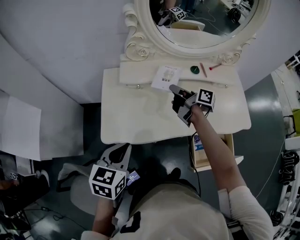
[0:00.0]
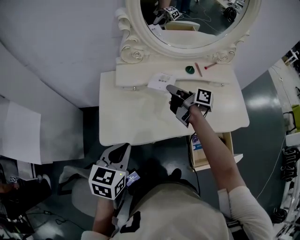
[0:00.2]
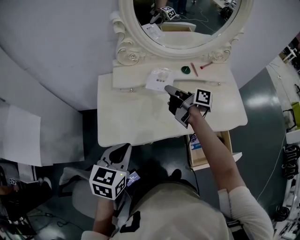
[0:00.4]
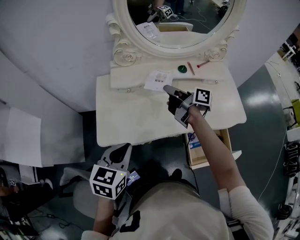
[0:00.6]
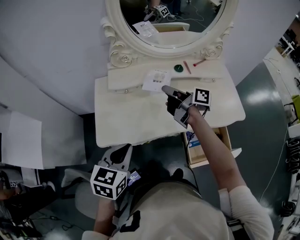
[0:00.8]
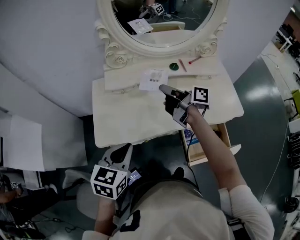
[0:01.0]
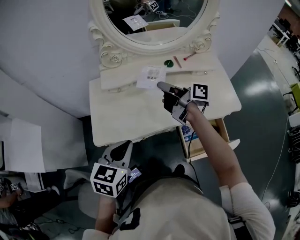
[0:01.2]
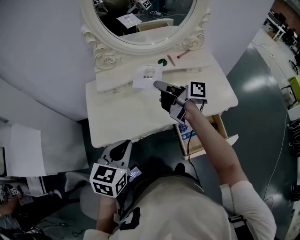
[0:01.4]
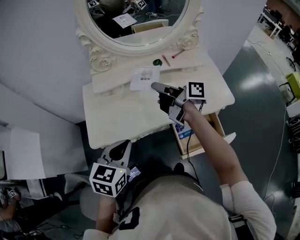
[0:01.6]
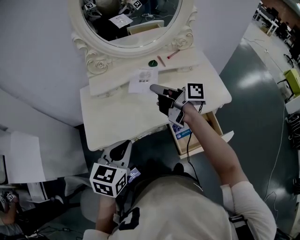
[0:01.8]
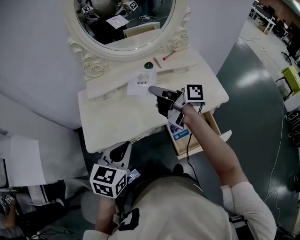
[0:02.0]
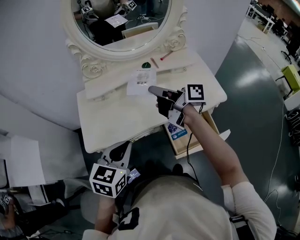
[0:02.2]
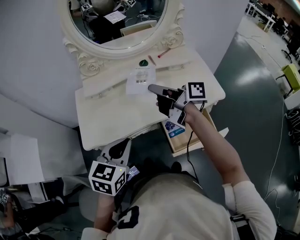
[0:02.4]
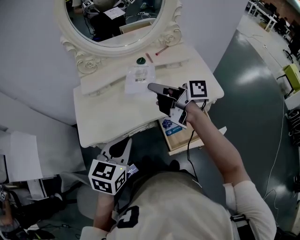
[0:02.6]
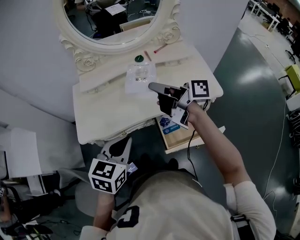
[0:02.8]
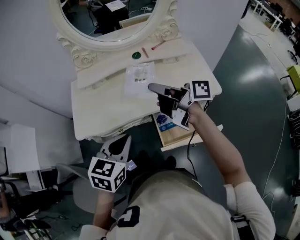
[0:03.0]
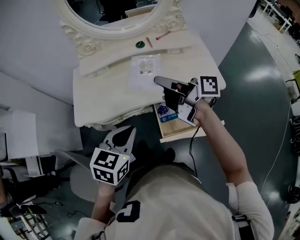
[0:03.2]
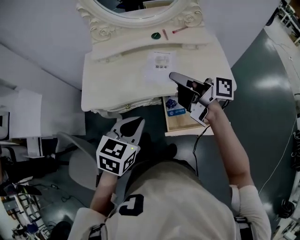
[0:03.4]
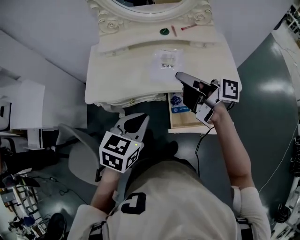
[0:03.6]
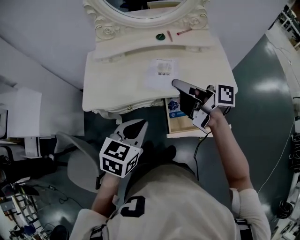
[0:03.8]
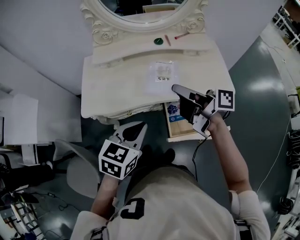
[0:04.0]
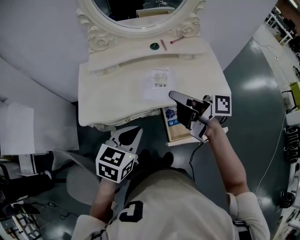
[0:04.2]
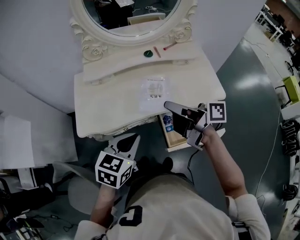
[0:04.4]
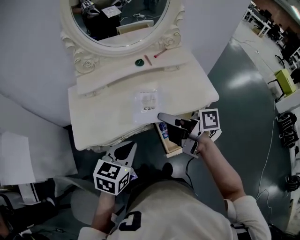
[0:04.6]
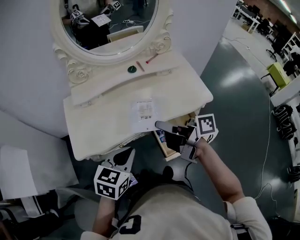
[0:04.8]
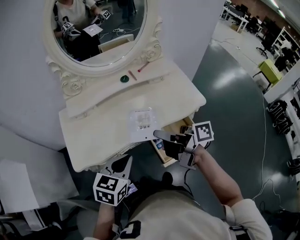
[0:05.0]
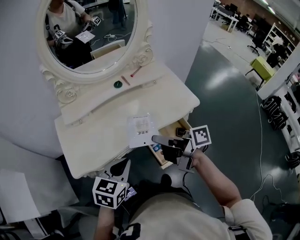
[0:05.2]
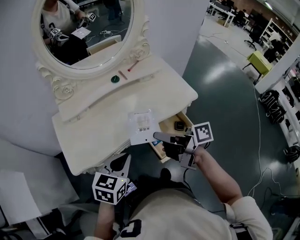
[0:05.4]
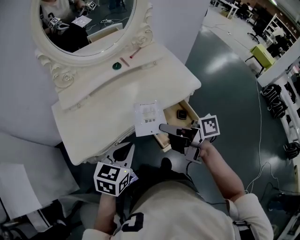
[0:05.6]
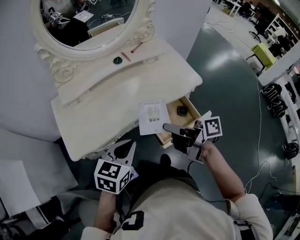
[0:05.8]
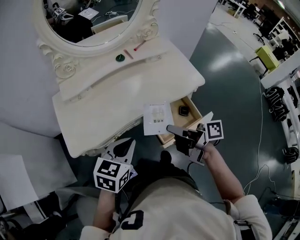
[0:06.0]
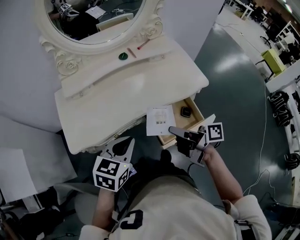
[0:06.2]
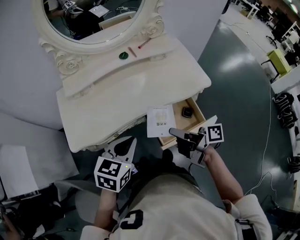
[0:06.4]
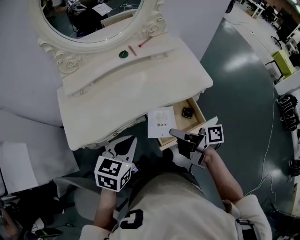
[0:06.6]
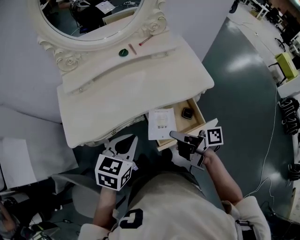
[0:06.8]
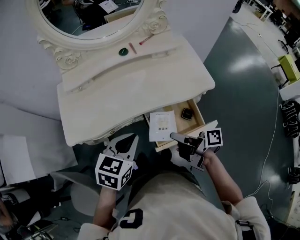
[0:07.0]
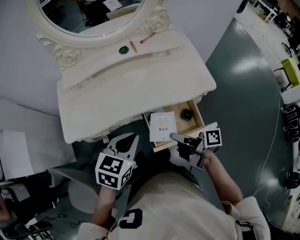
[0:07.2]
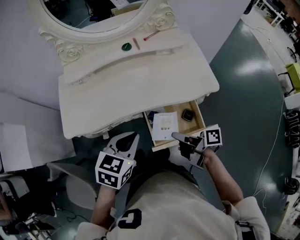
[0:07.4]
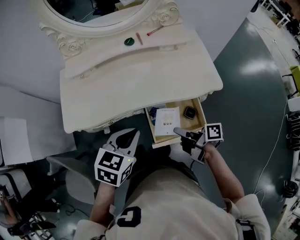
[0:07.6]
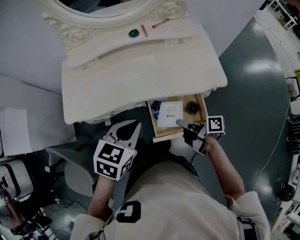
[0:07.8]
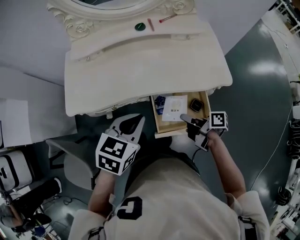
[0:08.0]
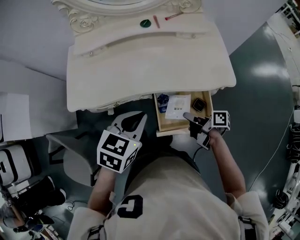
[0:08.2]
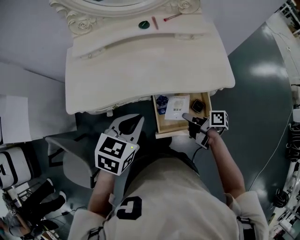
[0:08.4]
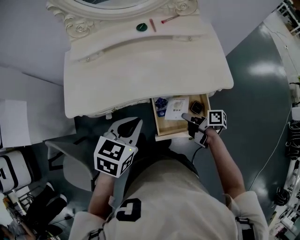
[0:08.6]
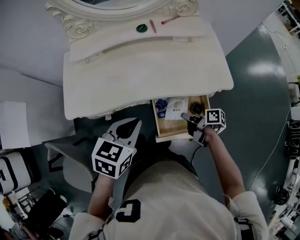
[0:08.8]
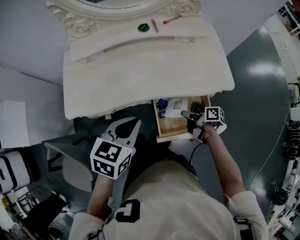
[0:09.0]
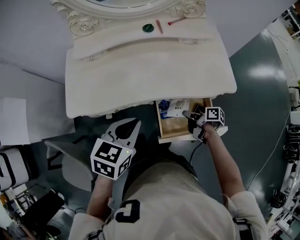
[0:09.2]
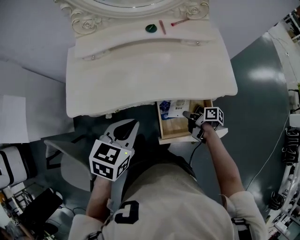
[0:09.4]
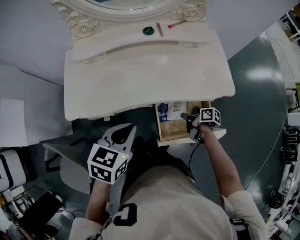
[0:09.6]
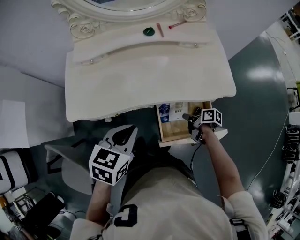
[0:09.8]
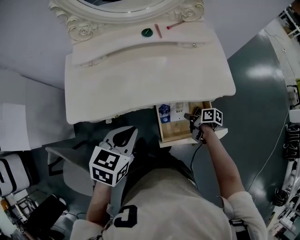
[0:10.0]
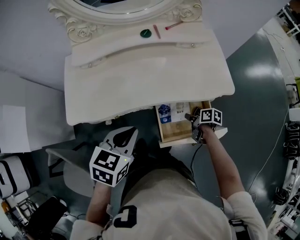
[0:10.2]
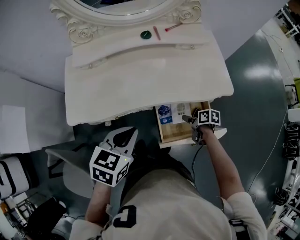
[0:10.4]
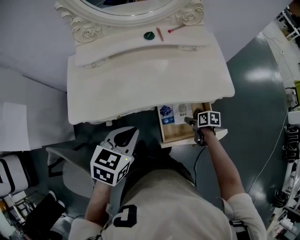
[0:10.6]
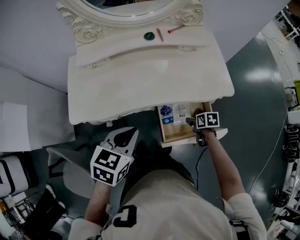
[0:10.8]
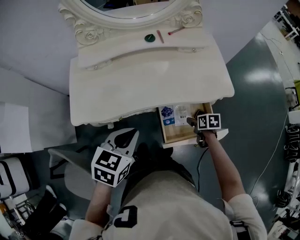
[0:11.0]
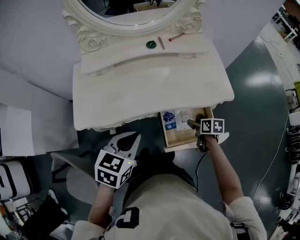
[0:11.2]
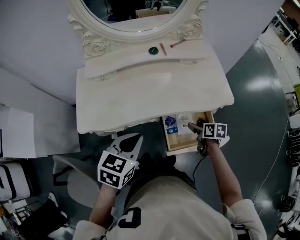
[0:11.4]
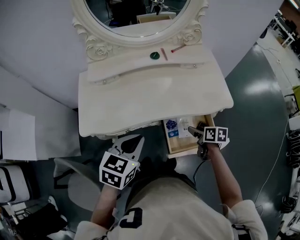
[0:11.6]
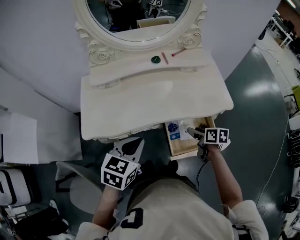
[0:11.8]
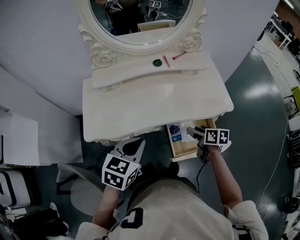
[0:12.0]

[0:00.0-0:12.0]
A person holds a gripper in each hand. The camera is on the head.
0:00.0 to 0:01.6: The right gripper shifts roughly 15 cm upward, backward and to the right; the left gripper shifts about 10 cm to the right.
0:01.6 to 0:03.0: The left gripper is displaced to the right and backward by approximately 15 cm, while the right gripper goes roughly 15 cm backward and to the right.
0:03.0 to 0:04.4: The right gripper is displaced backward by about 5 cm.
0:04.4 to 0:06.0: The right gripper heads backward and downward, covering roughly 10 cm.
0:06.0 to 0:07.6: The right gripper travels downward and to the right by approximately 20 cm, while the left gripper goes roughly 10 cm to the right.
0:07.6 to 0:09.0: The right gripper is displaced downward and forward by some 10 cm.
0:09.0 to 0:10.4: The right gripper shifts by approximately 5 cm, swivels approximately 30 degrees, and opens up.
0:10.4 to 0:12.0: The right gripper moves upward, about 15 cm, and turns by about 20 degrees. Meanwhile the left gripper changes place by roughly 5 cm.

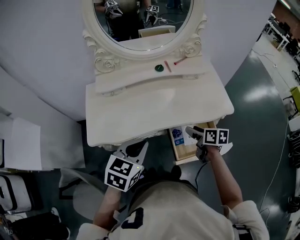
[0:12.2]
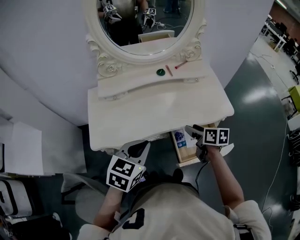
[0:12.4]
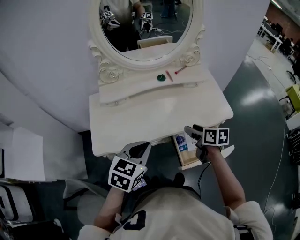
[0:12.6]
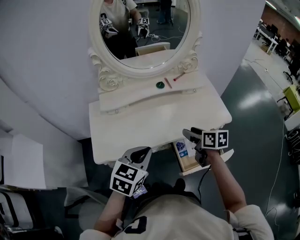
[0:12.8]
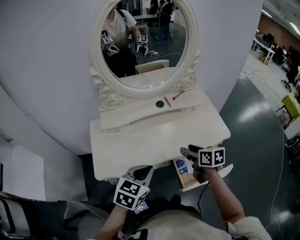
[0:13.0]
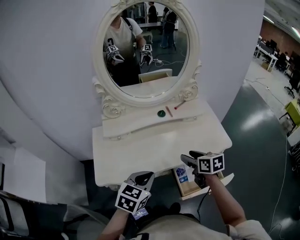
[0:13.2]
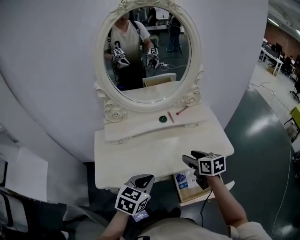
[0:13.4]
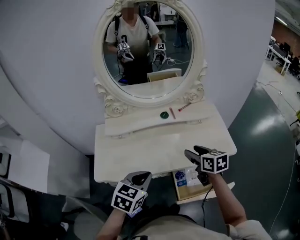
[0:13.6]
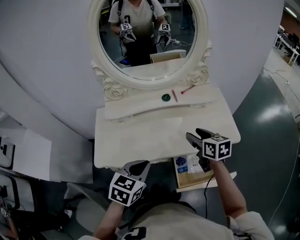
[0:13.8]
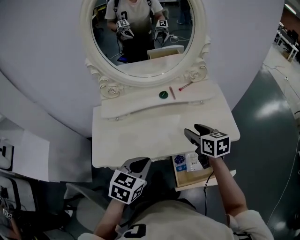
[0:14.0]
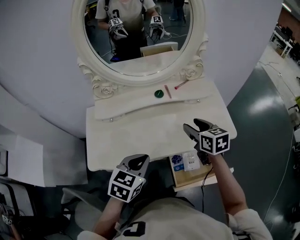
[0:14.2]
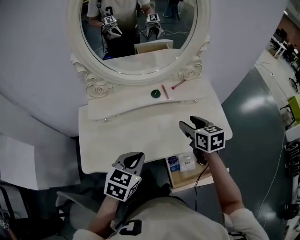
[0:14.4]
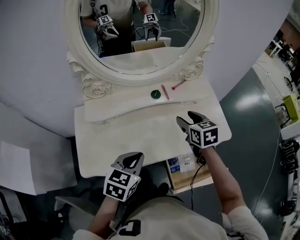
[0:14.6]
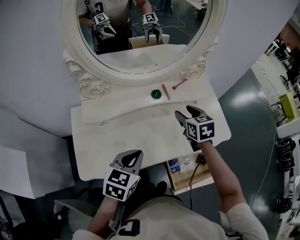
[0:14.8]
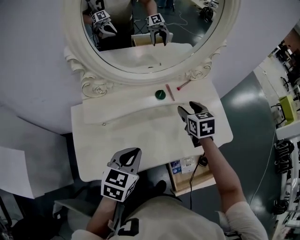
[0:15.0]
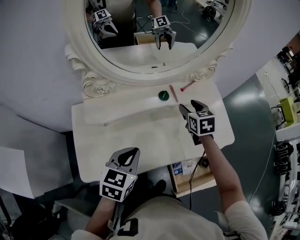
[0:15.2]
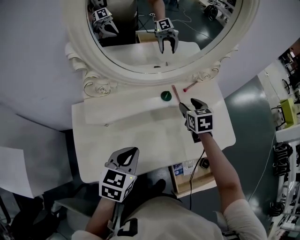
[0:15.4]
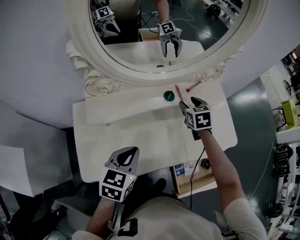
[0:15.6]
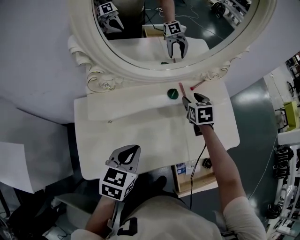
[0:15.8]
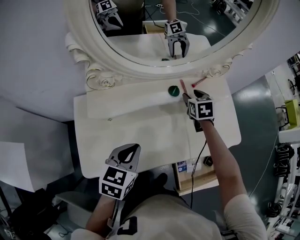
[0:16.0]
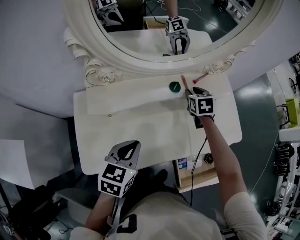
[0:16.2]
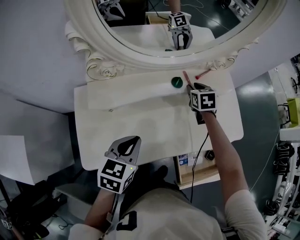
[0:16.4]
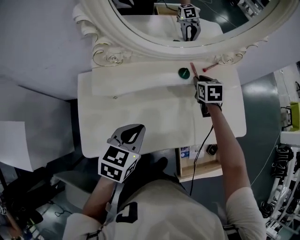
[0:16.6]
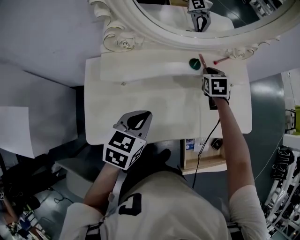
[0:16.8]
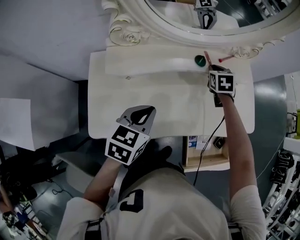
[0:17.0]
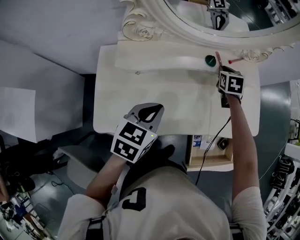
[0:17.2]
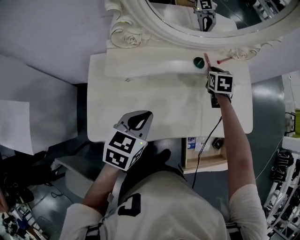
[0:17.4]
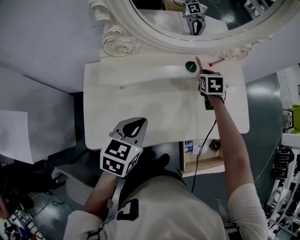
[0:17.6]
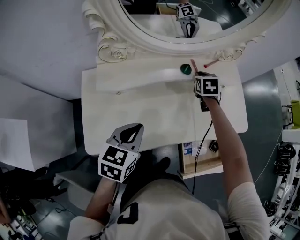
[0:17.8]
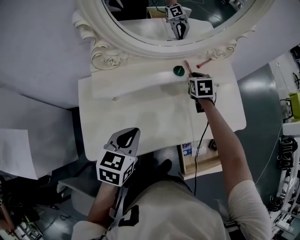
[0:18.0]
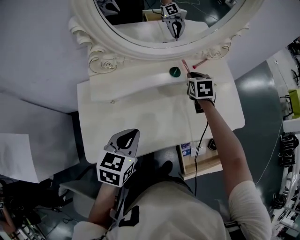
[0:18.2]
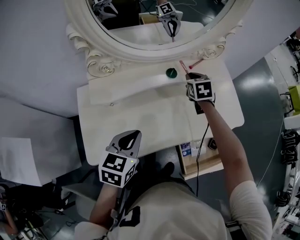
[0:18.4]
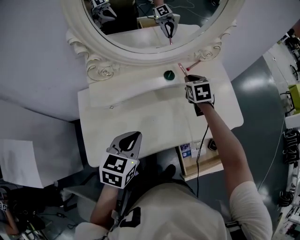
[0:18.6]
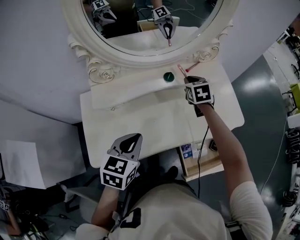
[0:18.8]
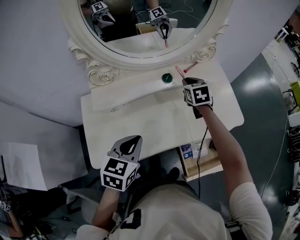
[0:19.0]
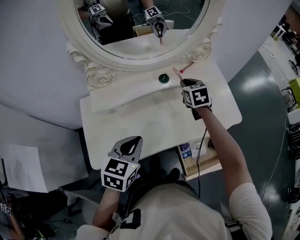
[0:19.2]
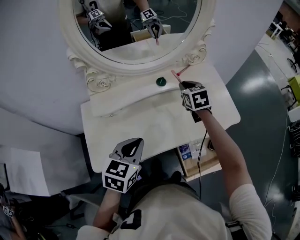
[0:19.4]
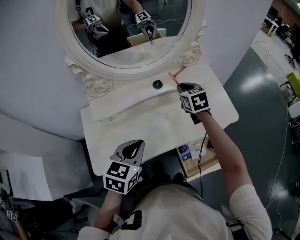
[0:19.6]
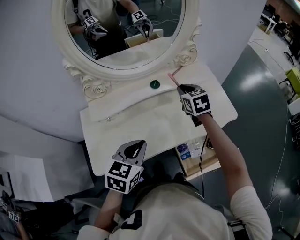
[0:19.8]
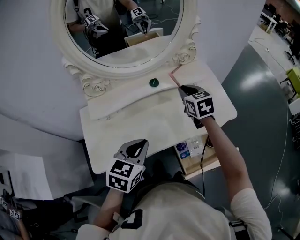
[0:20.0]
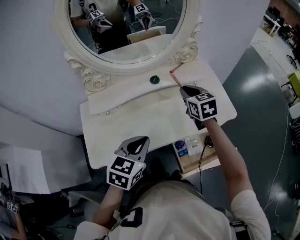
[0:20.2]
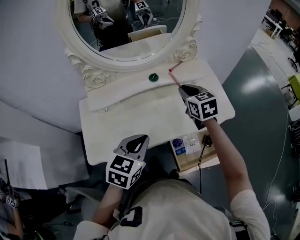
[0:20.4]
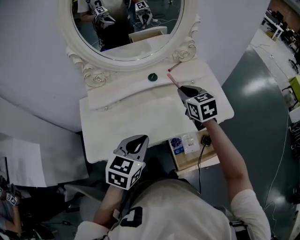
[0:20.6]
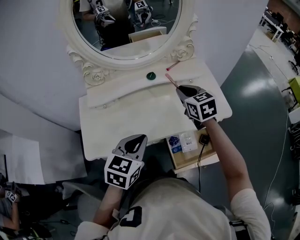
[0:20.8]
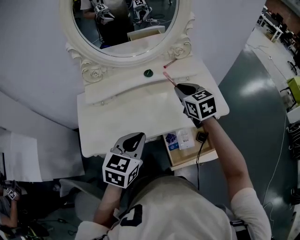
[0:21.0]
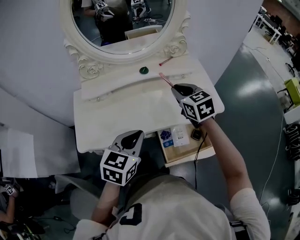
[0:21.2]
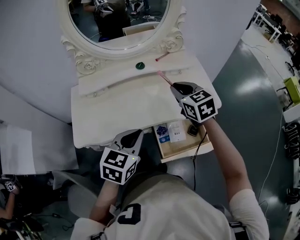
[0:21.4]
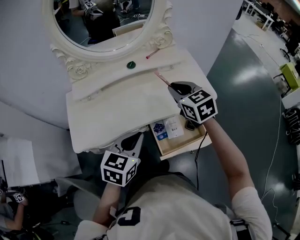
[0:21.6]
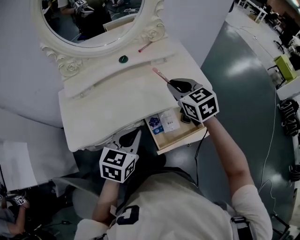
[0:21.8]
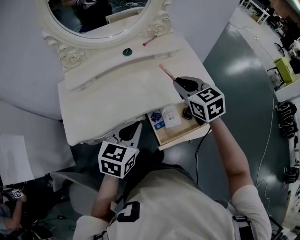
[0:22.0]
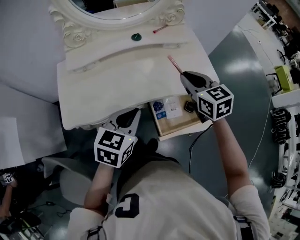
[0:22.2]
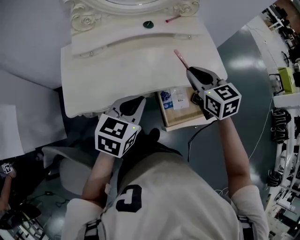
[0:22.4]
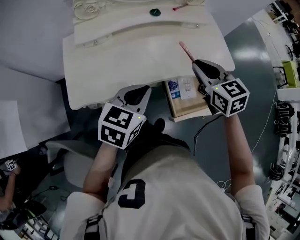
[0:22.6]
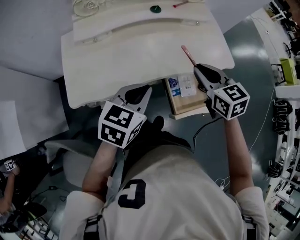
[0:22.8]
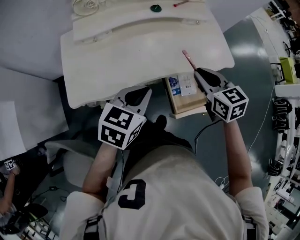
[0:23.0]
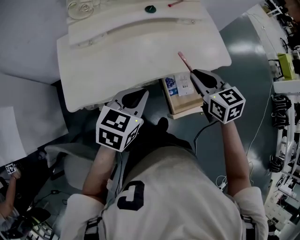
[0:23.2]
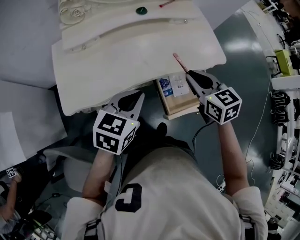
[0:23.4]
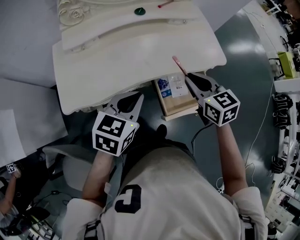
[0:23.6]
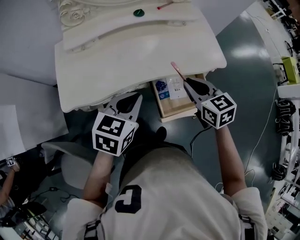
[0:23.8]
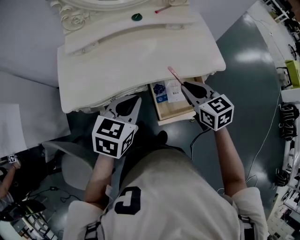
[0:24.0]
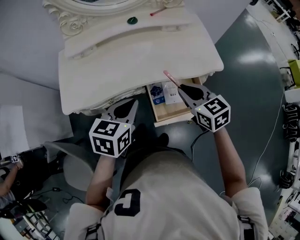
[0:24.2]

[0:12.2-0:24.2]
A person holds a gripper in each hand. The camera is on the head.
0:12.2 to 0:13.8: The right gripper goes roughly 15 cm upward and forward, and swivels some 20 degrees. Meanwhile the left gripper moves roughly 5 cm.
0:13.8 to 0:15.2: The right gripper goes about 20 cm forward, and changes its angle by roughly 30 degrees; the left gripper goes roughly 15 cm forward and to the left.
0:15.2 to 0:16.6: The right gripper travels downward and forward by approximately 10 cm, and closes its fingers.
0:16.6 to 0:18.2: The grippers make only small movements.
0:18.2 to 0:19.8: The left gripper heads to the right, covering some 10 cm. Meanwhile the right gripper moves upward, backward and to the right, roughly 15 cm.
0:19.8 to 0:21.2: The left gripper moves to the right and backward, roughly 10 cm; the right gripper heads backward, covering roughly 10 cm.
0:21.2 to 0:22.6: The left gripper moves about 5 cm. Meanwhile the right gripper heads backward, covering roughly 10 cm.
0:22.6 to 0:24.2: The right gripper is displaced to the right, backward and downward by some 15 cm. Meanwhile the left gripper moves to the right, some 10 cm.
